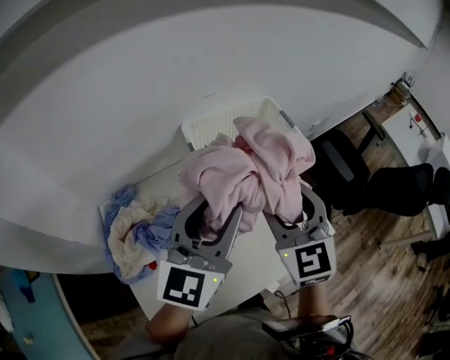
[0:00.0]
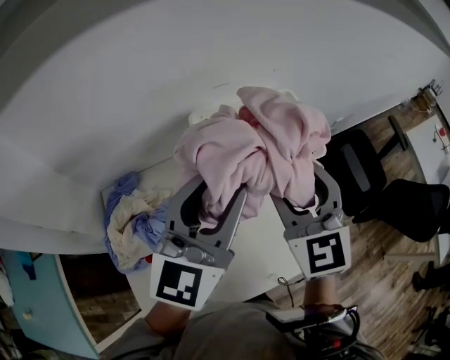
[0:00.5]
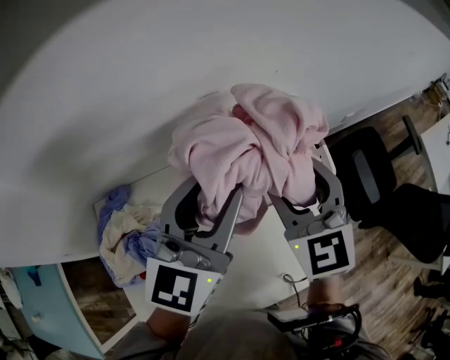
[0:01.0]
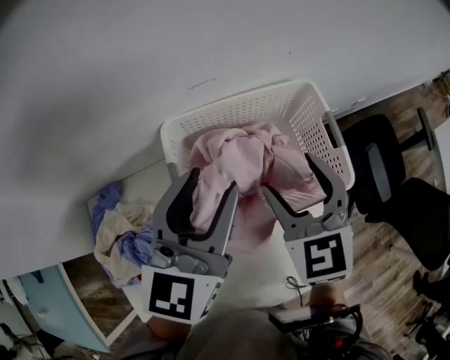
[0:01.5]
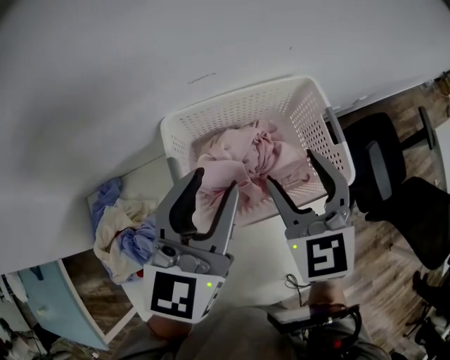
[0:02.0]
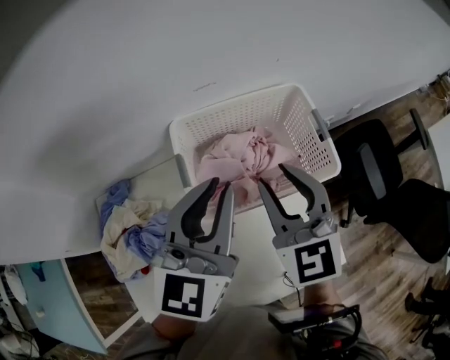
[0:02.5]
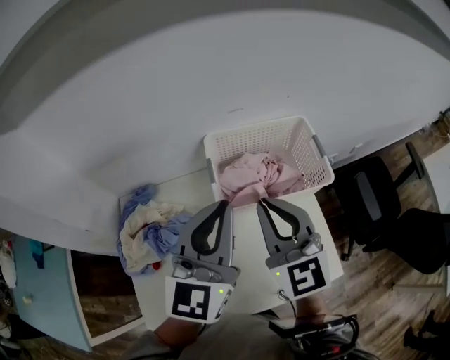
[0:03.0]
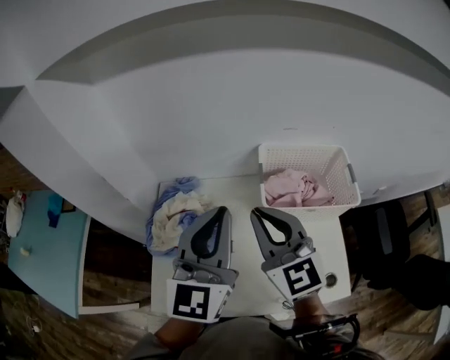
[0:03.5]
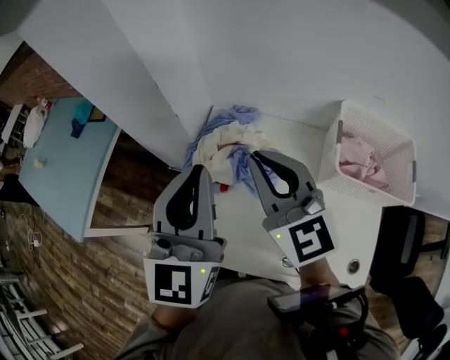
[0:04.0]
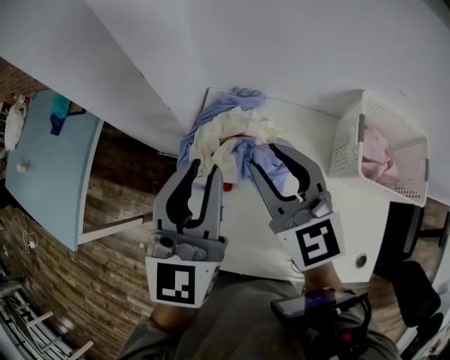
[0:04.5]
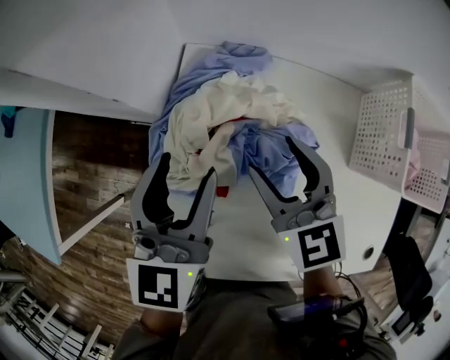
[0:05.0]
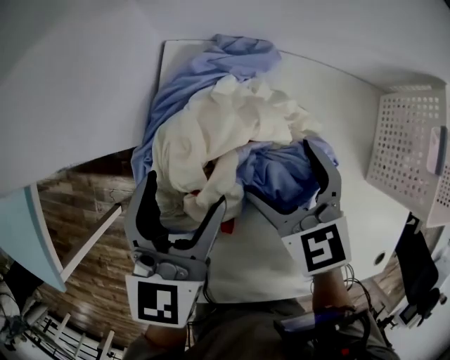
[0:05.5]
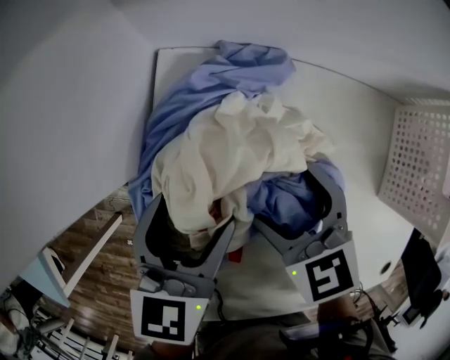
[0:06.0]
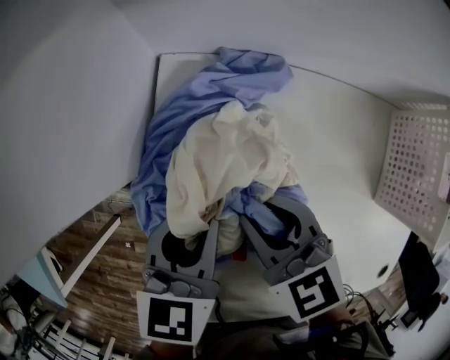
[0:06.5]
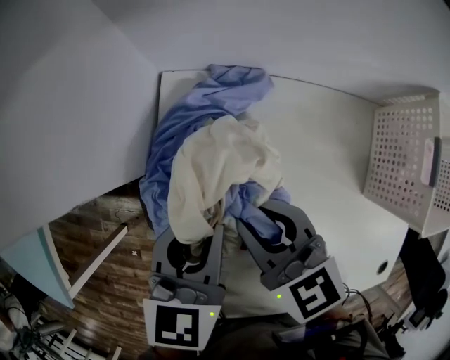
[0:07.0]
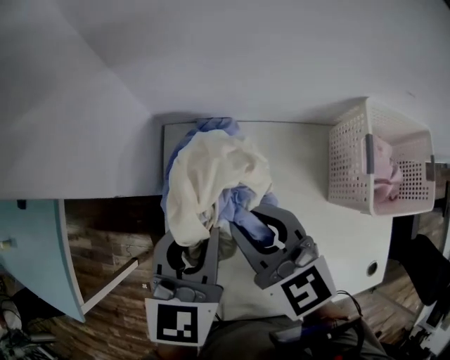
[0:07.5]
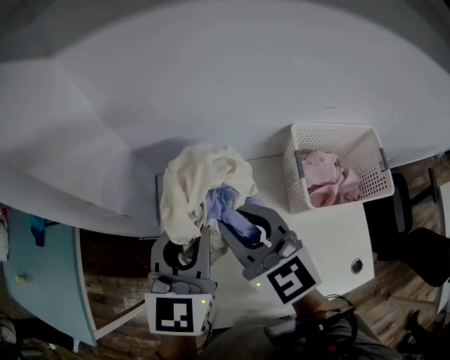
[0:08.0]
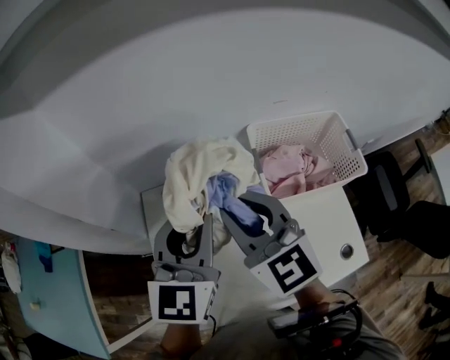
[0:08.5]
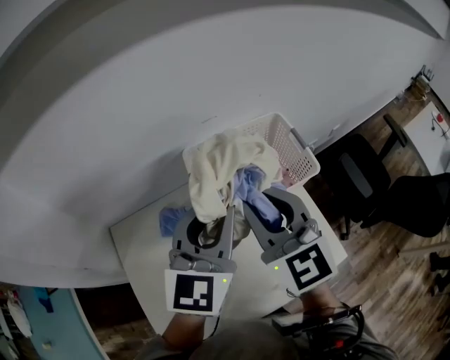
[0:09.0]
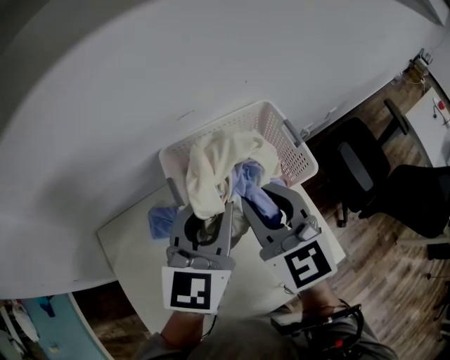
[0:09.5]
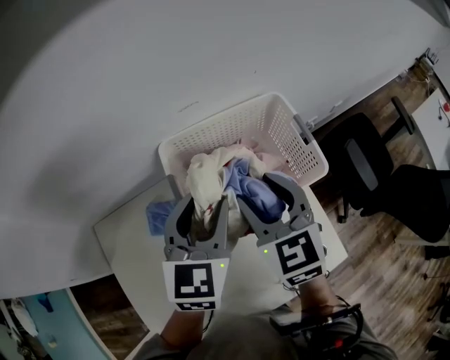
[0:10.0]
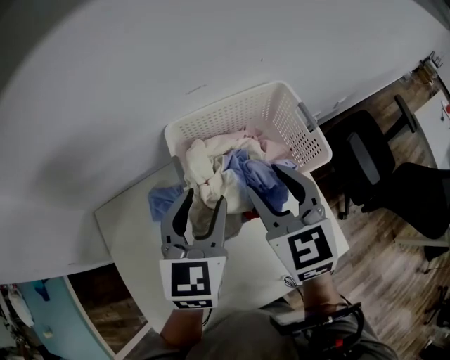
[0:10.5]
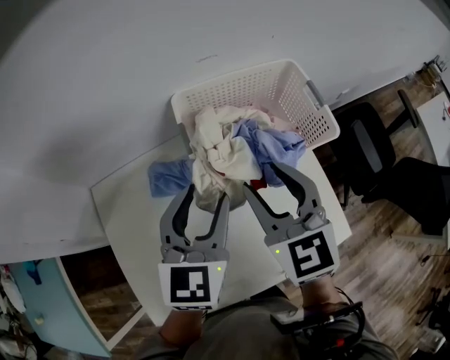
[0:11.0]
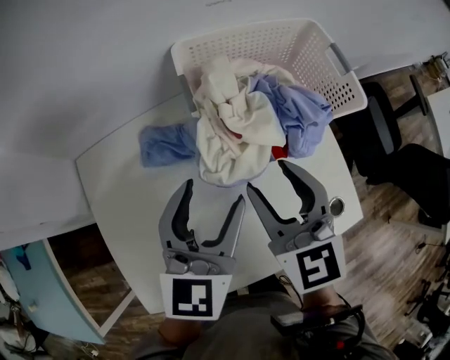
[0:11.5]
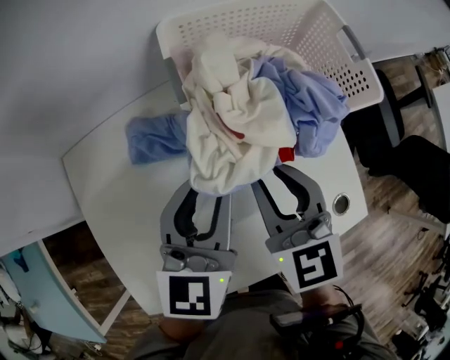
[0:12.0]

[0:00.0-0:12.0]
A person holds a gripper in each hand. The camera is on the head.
0:00.0 to 0:02.0: The left gripper moves forward, roughly 20 cm. The right gripper goes some 20 cm forward and downward.
0:02.0 to 0:04.0: Both grippers are carried about 40 cm. The right gripper turns by about 50 degrees, and closes up; the left gripper rotates about 50 degrees, and closes its fingers.
0:04.0 to 0:06.0: The right gripper is displaced downward by some 35 cm, tips its fingers downward by some 40 degrees, and opens up. The left gripper is displaced downward and forward by about 40 cm, angles its fingers downward, by approximately 40 degrees, and opens its fingers.
0:06.0 to 0:08.0: The right gripper shifts some 15 cm to the left, and closes up. Meanwhile the left gripper goes approximately 10 cm to the left, and closes.
0:08.0 to 0:10.0: The left gripper ends up some 35 cm from where it was, and turns by approximately 20 degrees, while the right gripper travels upward and back again, approximately 10 cm each way, and rotates some 40 degrees.
0:10.0 to 0:12.0: The left gripper is displaced backward by approximately 15 cm, while the right gripper is displaced backward and downward by approximately 15 cm.

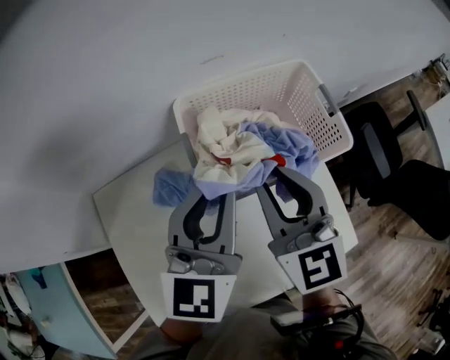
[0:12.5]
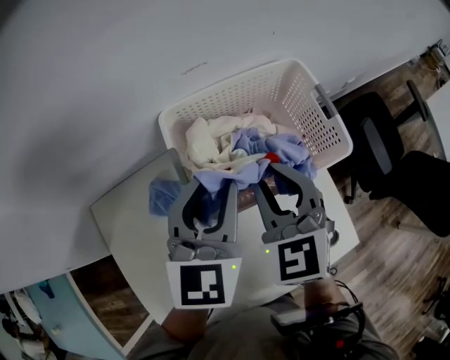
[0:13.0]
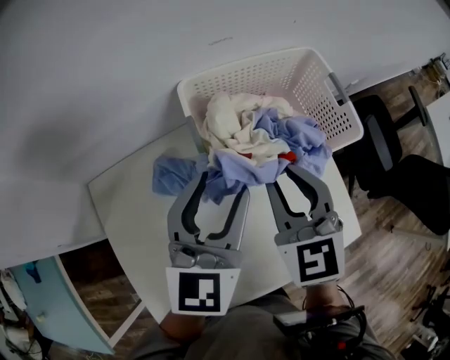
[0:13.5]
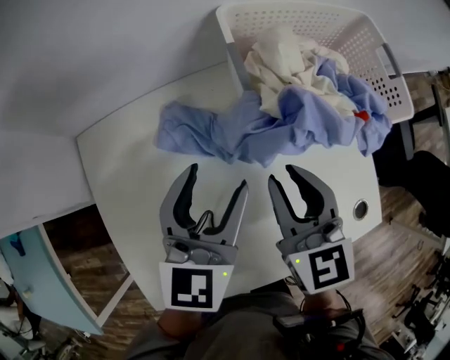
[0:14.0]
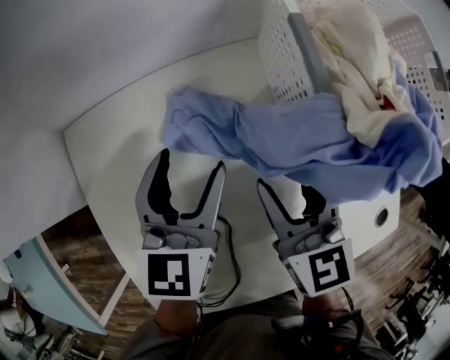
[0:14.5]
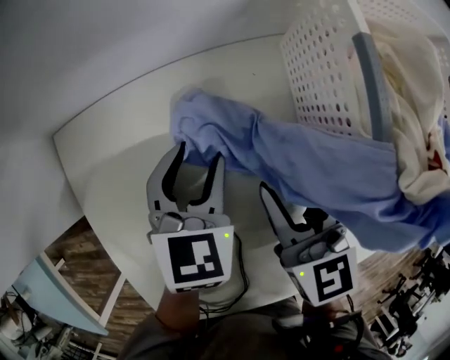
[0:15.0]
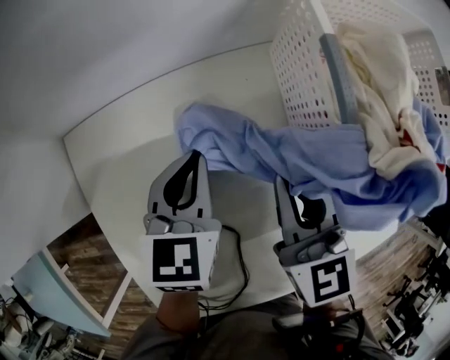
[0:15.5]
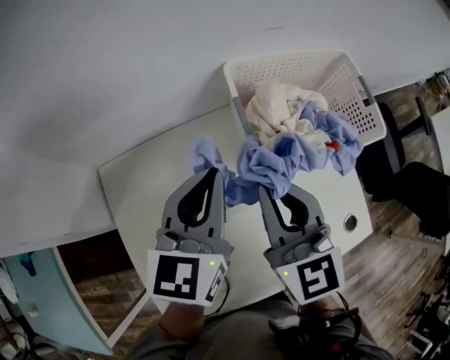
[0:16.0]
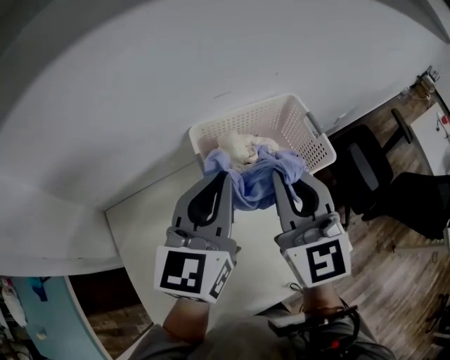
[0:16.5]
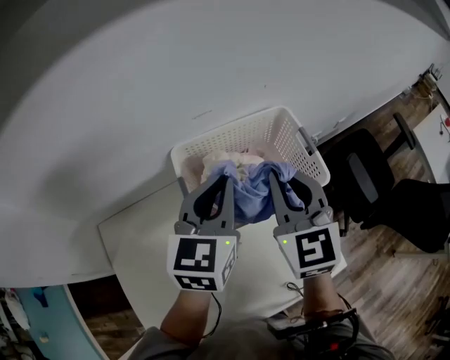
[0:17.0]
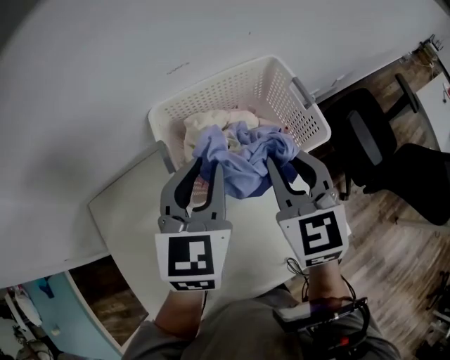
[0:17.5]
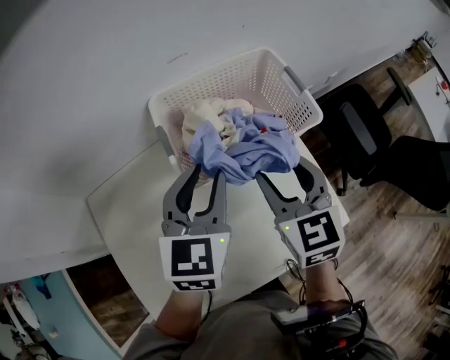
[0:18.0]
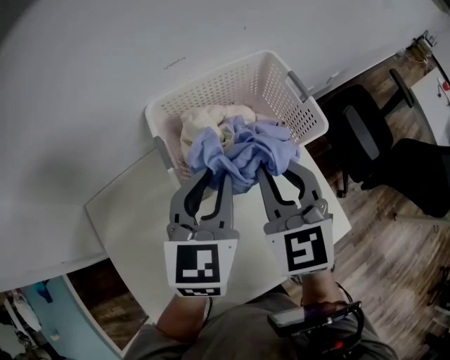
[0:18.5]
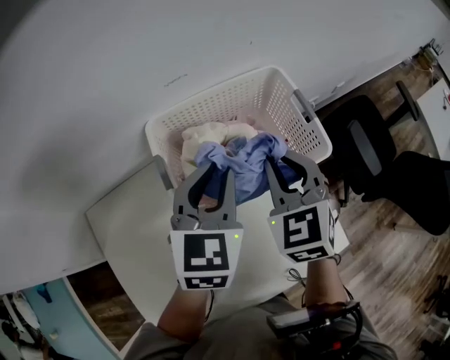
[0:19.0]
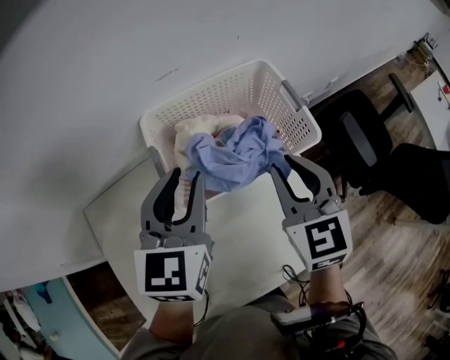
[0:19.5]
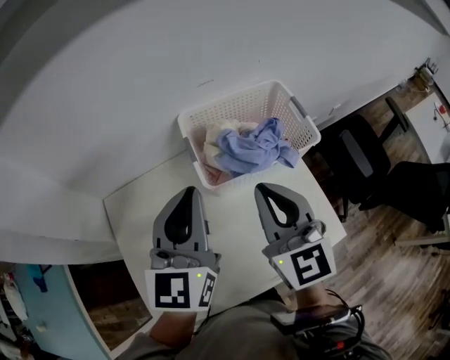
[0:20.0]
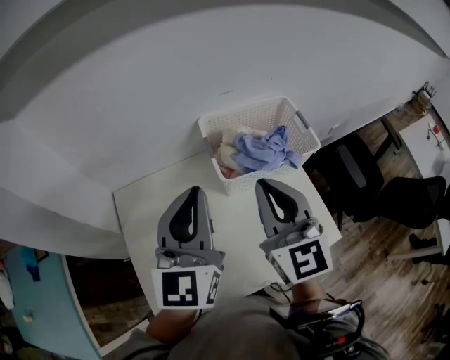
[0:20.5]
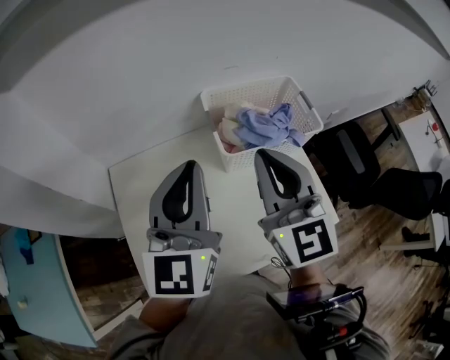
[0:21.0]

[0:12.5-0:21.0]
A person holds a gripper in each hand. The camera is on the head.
0:12.5 to 0:14.5: The left gripper is displaced downward, to the left and backward by about 30 cm, and opens its fingers; the right gripper is displaced downward, backward and to the left by some 25 cm.
0:14.5 to 0:16.5: Both grippers travel together upward and forward, some 30 cm. The left gripper turns by about 20 degrees, and closes up, while the right gripper rotates about 30 degrees, and closes.
0:16.5 to 0:19.0: Both grippers travel together downward and to the right, approximately 15 cm. The right gripper swivels roughly 30 degrees, and opens, then closes again. The left gripper turns by approximately 20 degrees.
0:19.0 to 0:21.0: The grippers both shift upward, to the left and backward by approximately 30 cm. The left gripper swivels about 30 degrees, while the right gripper tips its fingers upward by about 30 degrees.

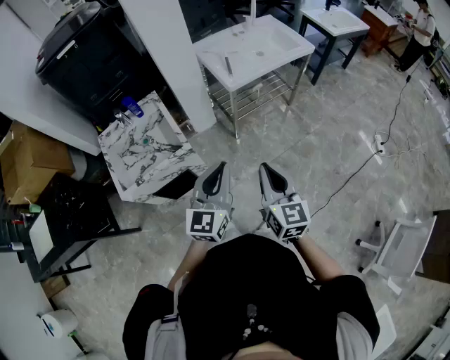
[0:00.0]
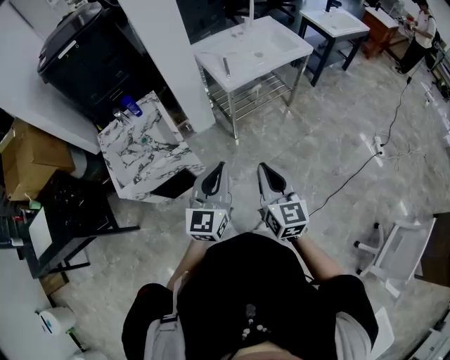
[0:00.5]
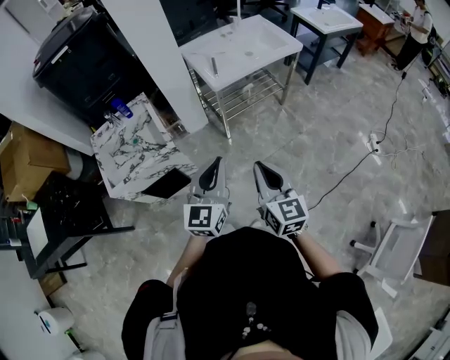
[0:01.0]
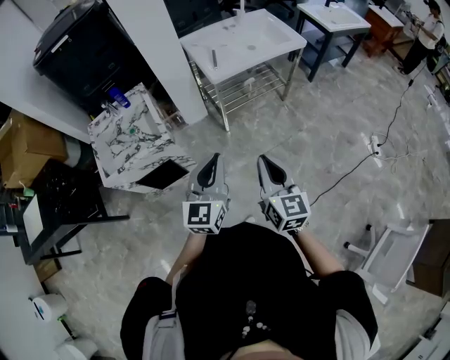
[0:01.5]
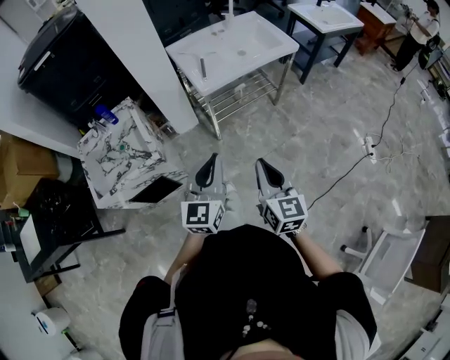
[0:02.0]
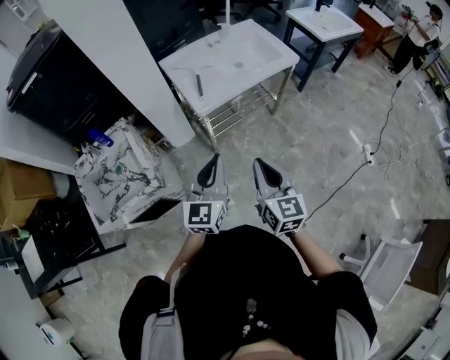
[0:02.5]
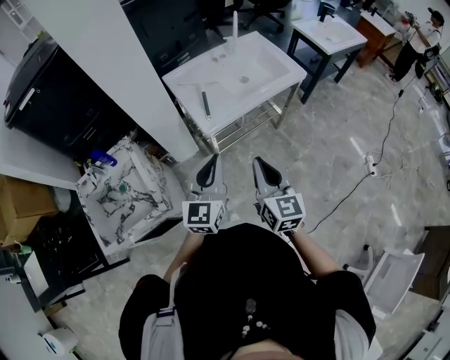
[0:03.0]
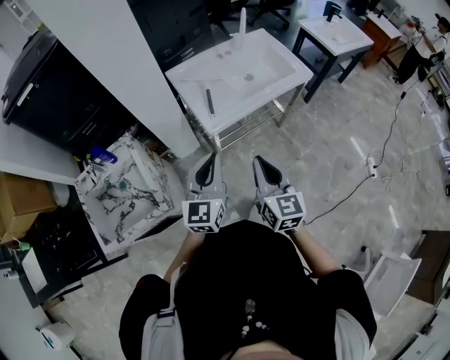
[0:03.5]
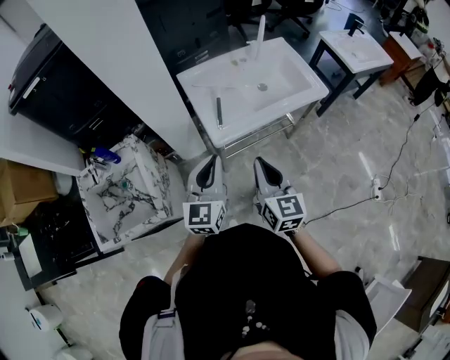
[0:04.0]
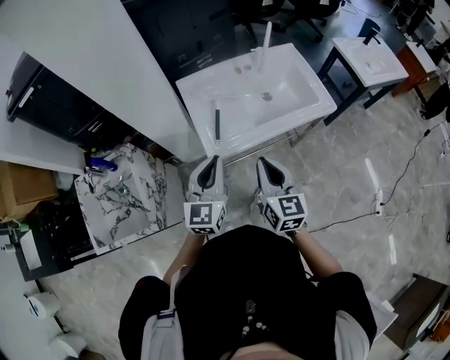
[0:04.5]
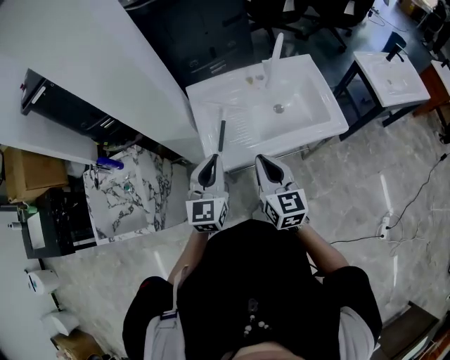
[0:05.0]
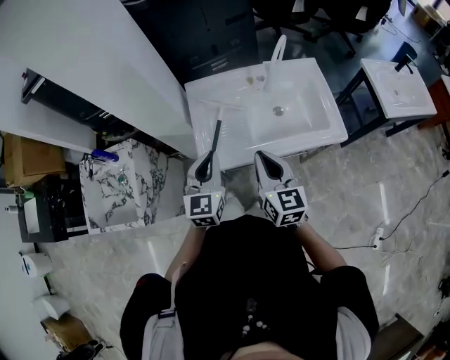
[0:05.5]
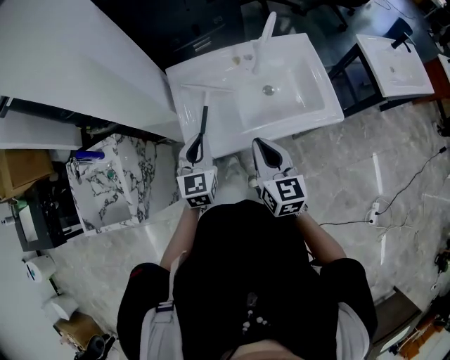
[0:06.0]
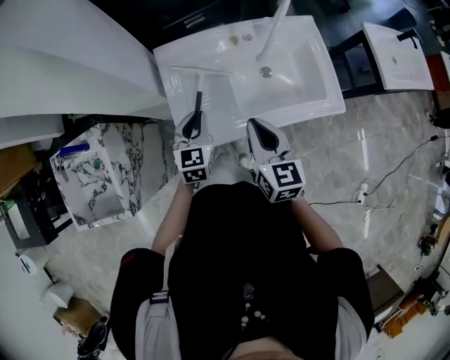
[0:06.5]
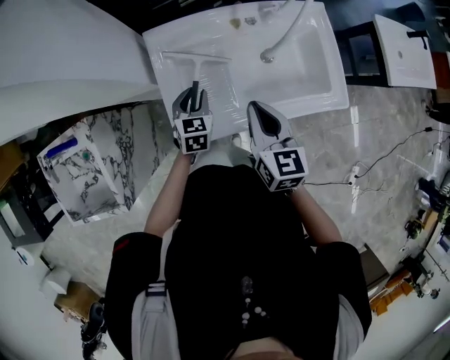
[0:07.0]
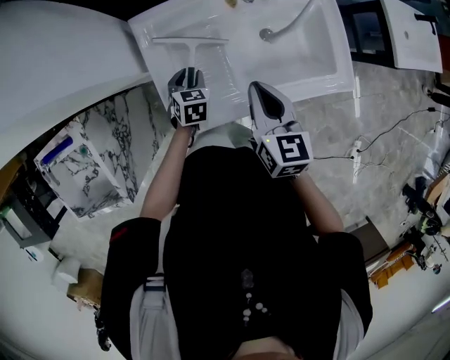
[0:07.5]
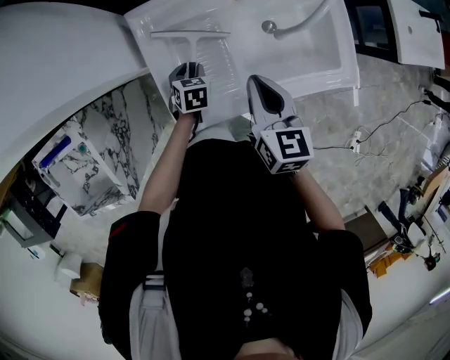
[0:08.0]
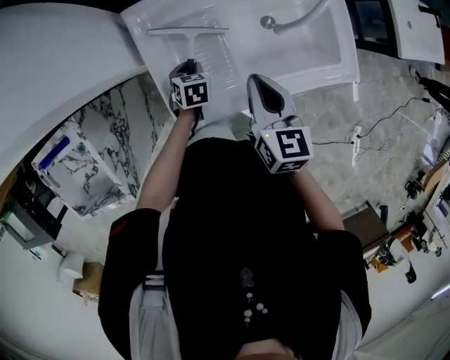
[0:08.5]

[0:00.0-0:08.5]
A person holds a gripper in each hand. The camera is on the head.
0:00.0 to 0:02.0: The two grippers go approximately 15 cm to the right and forward.
0:02.0 to 0:04.0: The two grippers go roughly 30 cm forward.
0:04.0 to 0:06.5: The left gripper shifts approximately 30 cm forward and downward, and rotates about 30 degrees, while the right gripper moves forward and to the right, about 30 cm.
0:06.5 to 0:08.5: The left gripper heads downward, covering roughly 20 cm, and tips its fingers downward by approximately 40 degrees, while the right gripper is displaced forward and downward by about 10 cm.
